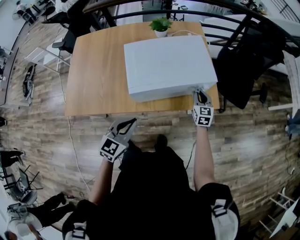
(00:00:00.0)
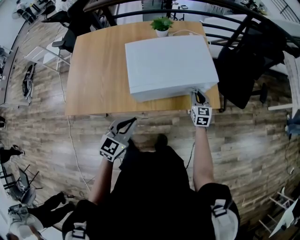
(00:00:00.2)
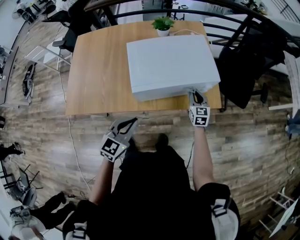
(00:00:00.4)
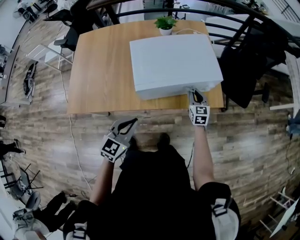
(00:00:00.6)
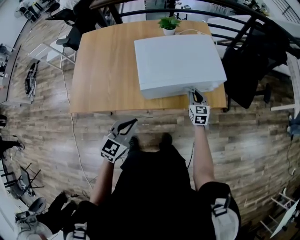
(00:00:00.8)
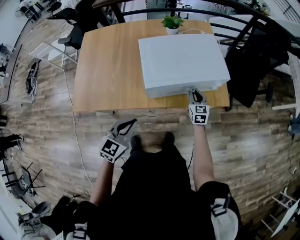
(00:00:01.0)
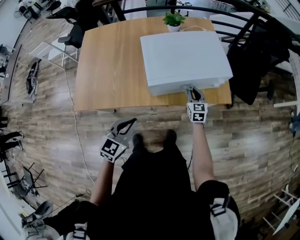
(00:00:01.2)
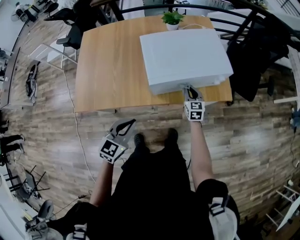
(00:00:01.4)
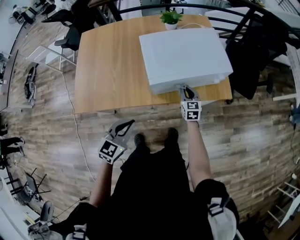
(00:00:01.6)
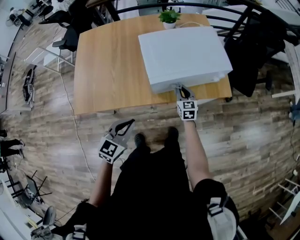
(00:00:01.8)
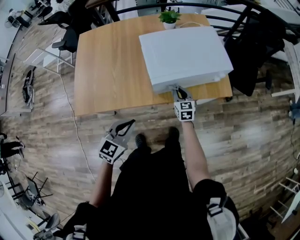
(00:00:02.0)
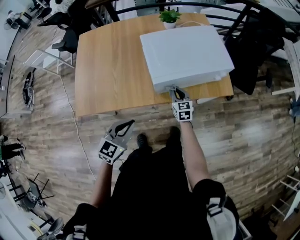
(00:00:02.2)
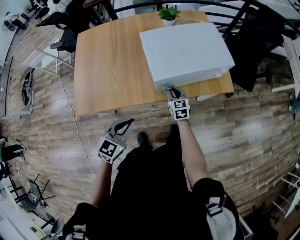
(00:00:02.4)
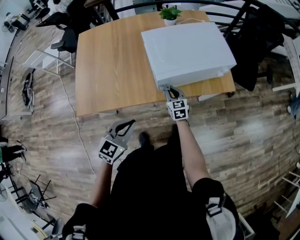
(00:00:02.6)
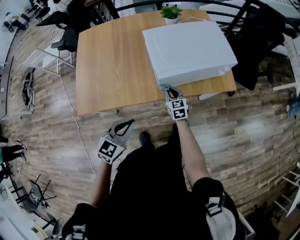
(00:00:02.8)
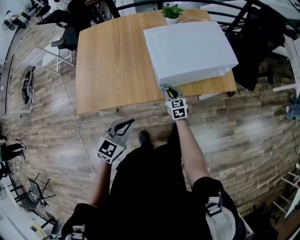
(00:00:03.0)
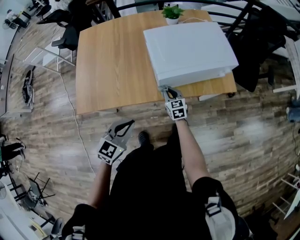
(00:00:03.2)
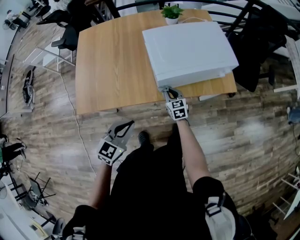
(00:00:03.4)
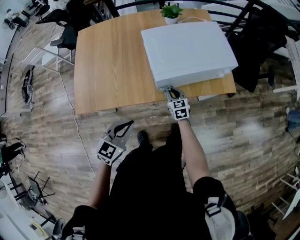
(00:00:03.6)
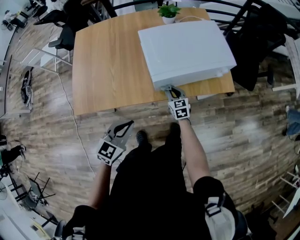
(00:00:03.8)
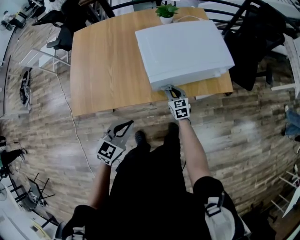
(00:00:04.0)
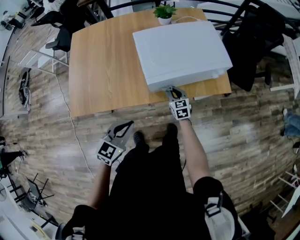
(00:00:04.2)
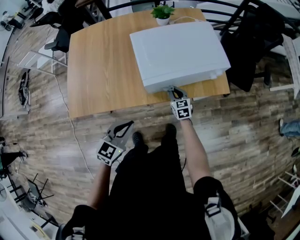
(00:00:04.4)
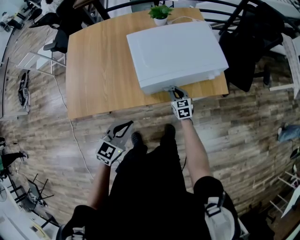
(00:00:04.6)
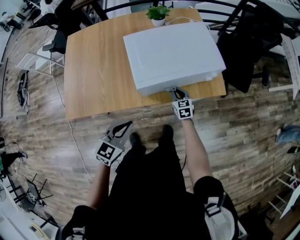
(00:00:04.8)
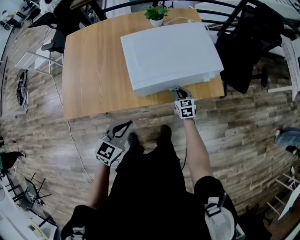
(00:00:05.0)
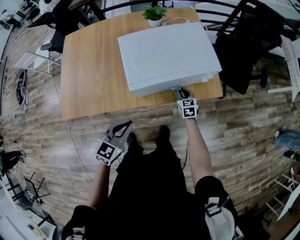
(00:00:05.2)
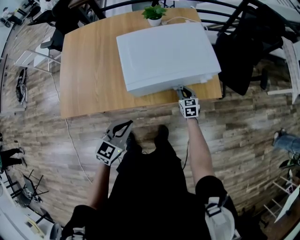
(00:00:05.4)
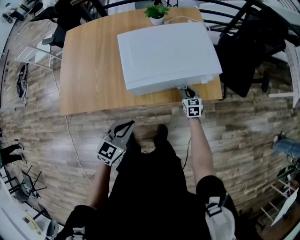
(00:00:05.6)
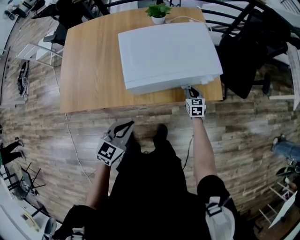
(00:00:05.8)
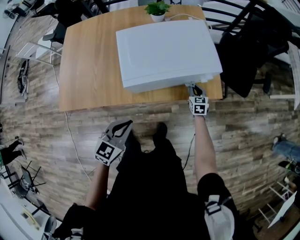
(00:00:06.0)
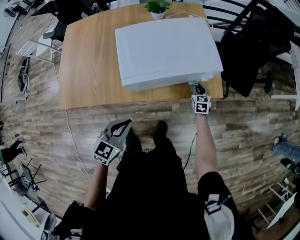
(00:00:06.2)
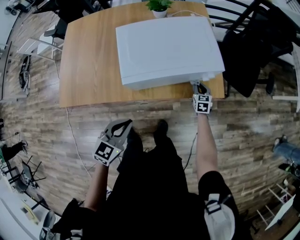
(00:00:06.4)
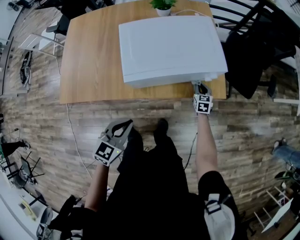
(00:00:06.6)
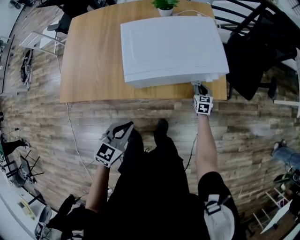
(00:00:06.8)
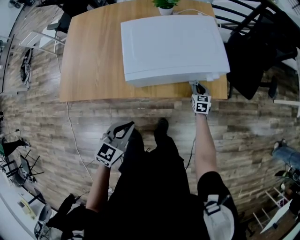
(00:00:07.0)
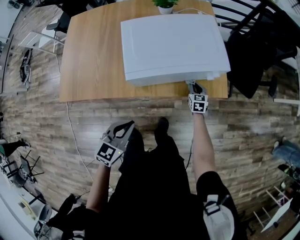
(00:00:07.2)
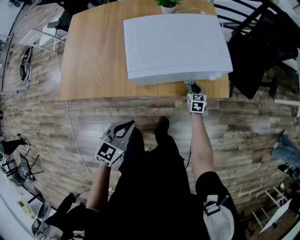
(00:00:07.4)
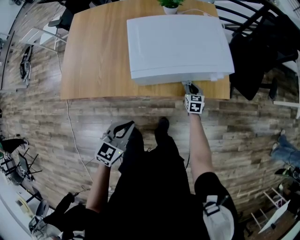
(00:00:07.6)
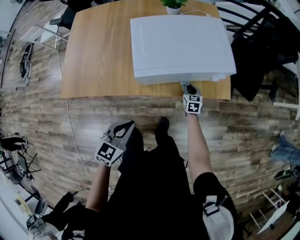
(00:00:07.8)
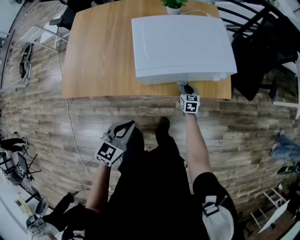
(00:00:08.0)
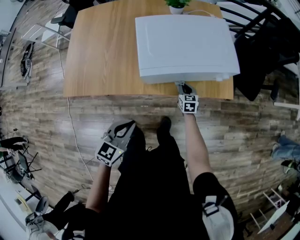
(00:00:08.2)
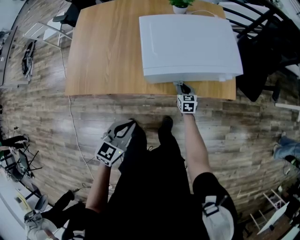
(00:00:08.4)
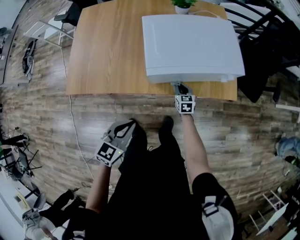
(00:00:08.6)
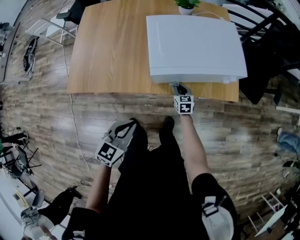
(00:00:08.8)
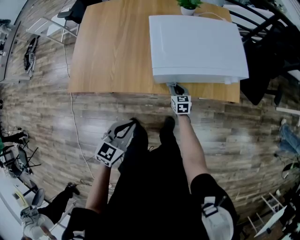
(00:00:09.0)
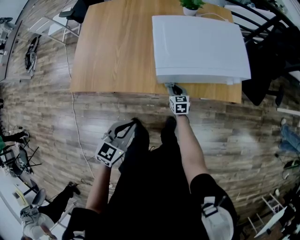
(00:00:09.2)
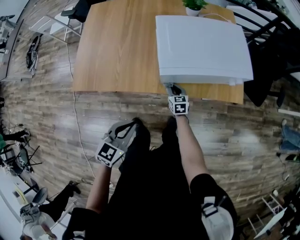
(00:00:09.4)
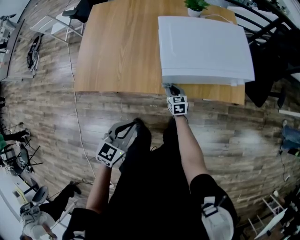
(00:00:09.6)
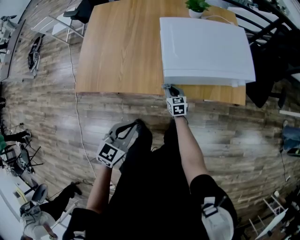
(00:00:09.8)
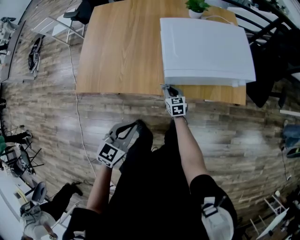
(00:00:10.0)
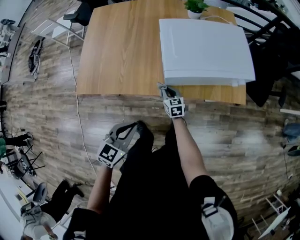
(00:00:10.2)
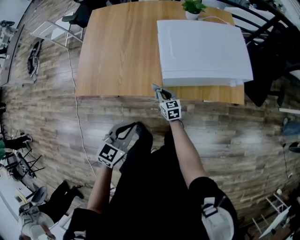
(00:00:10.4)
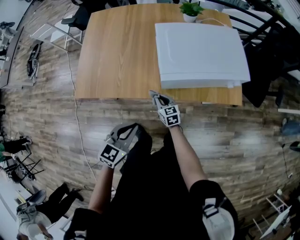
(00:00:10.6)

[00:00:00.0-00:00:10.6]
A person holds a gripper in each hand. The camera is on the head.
00:00:00.0 to 00:00:01.6: Both grippers move to the left and backward, approximately 15 cm.
00:00:01.6 to 00:00:03.0: The right gripper heads to the left and backward, covering approximately 15 cm.
00:00:03.0 to 00:00:04.6: The left gripper moves to the right, some 5 cm, while the right gripper shifts approximately 15 cm to the right and forward.
00:00:04.6 to 00:00:06.0: The right gripper heads to the right and forward, covering some 20 cm; the left gripper goes some 10 cm to the right.
00:00:06.0 to 00:00:07.6: The right gripper is displaced to the left by roughly 5 cm.
00:00:07.6 to 00:00:09.0: The right gripper travels to the left by approximately 15 cm. Meanwhile the left gripper shifts approximately 5 cm to the left.
00:00:09.0 to 00:00:10.6: The right gripper goes about 15 cm to the left and backward.

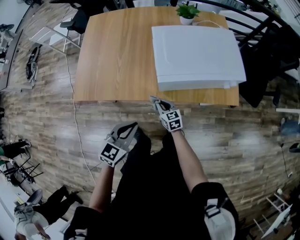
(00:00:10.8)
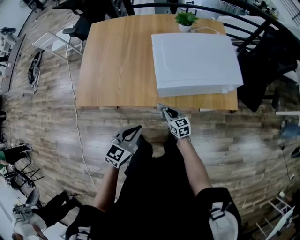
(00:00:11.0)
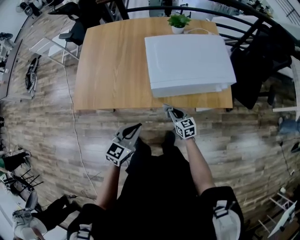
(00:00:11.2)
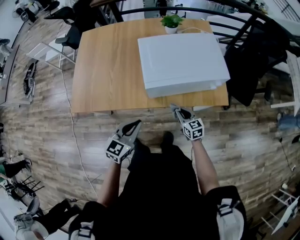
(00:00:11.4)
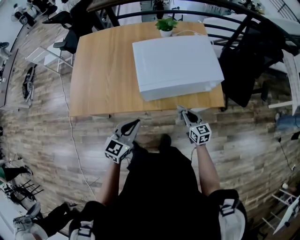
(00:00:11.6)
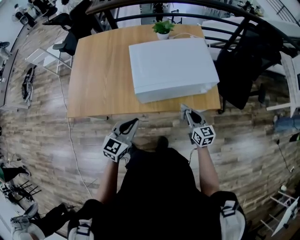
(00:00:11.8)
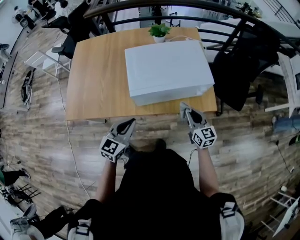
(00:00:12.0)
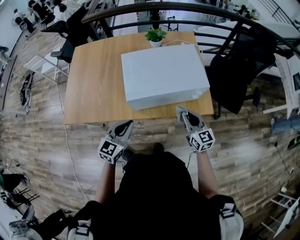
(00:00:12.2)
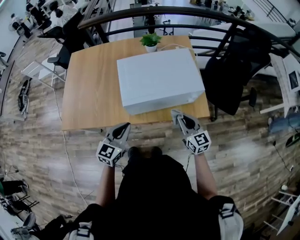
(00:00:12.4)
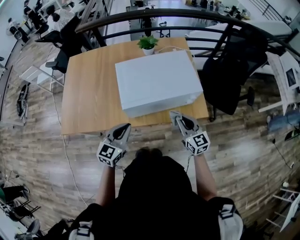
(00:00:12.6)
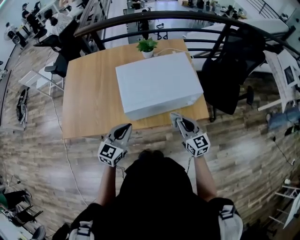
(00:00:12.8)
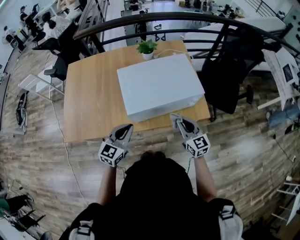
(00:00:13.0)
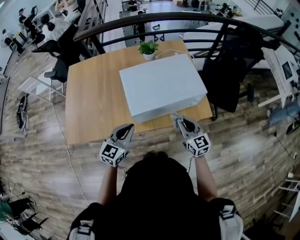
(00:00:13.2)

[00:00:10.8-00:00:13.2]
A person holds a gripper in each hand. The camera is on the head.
00:00:10.8 to 00:00:12.0: The right gripper travels to the right and upward by some 35 cm, and changes its angle by approximately 20 degrees; the left gripper moves to the right and forward, about 10 cm.
00:00:12.0 to 00:00:13.2: The left gripper moves forward, roughly 5 cm. The right gripper shifts by roughly 5 cm.

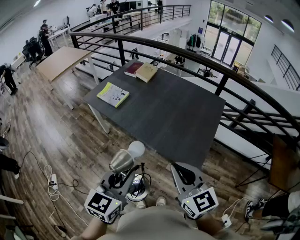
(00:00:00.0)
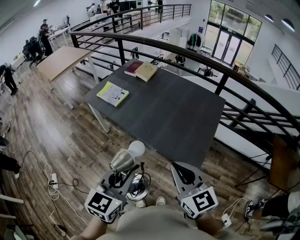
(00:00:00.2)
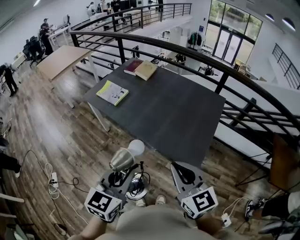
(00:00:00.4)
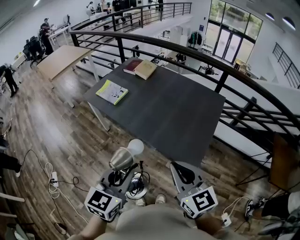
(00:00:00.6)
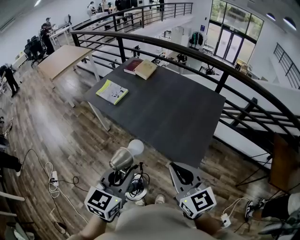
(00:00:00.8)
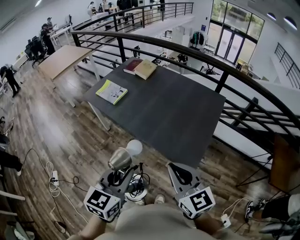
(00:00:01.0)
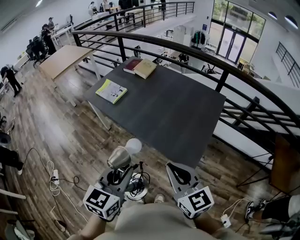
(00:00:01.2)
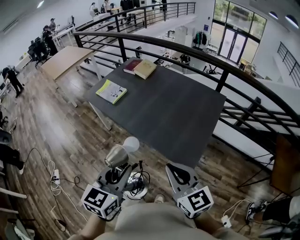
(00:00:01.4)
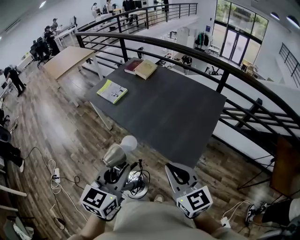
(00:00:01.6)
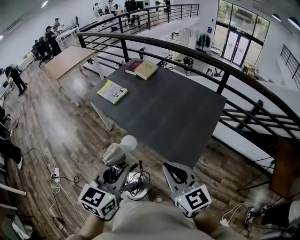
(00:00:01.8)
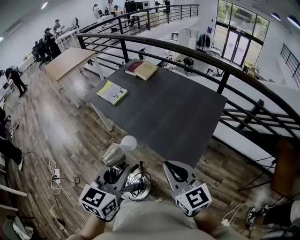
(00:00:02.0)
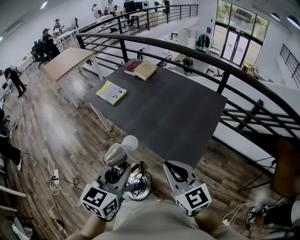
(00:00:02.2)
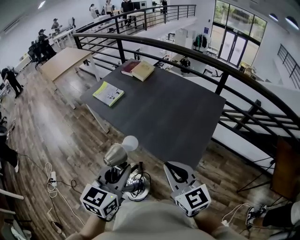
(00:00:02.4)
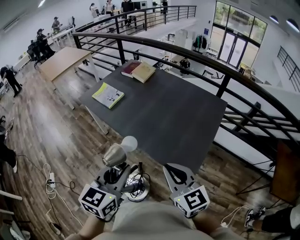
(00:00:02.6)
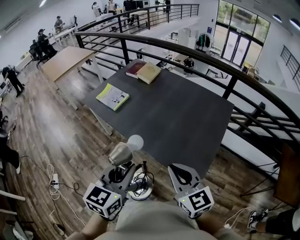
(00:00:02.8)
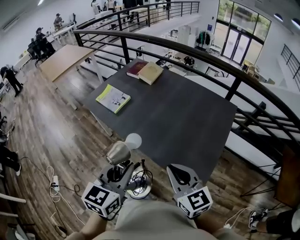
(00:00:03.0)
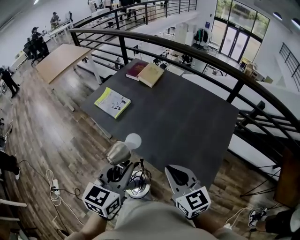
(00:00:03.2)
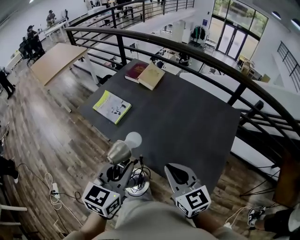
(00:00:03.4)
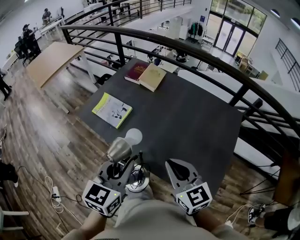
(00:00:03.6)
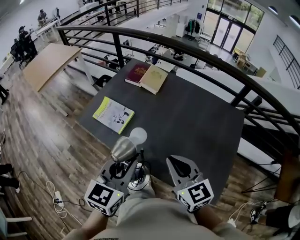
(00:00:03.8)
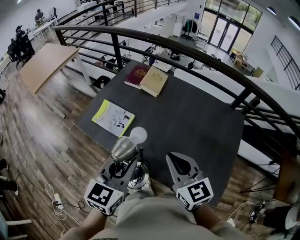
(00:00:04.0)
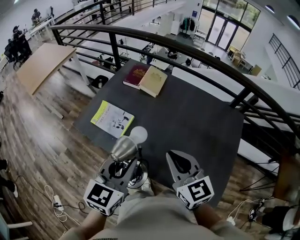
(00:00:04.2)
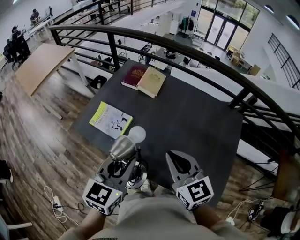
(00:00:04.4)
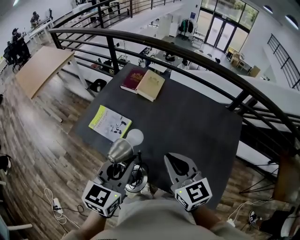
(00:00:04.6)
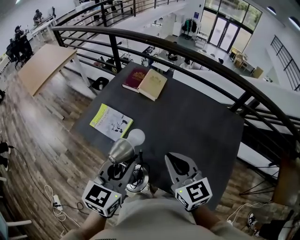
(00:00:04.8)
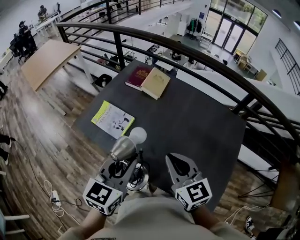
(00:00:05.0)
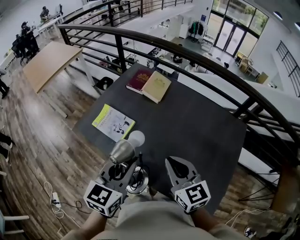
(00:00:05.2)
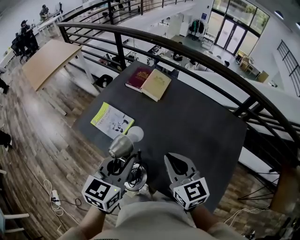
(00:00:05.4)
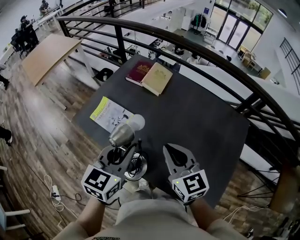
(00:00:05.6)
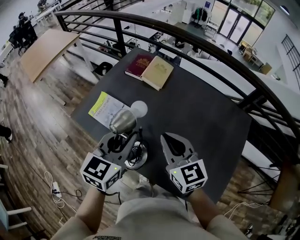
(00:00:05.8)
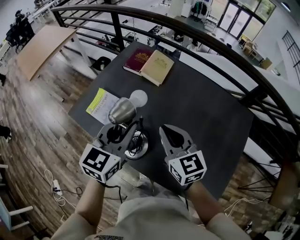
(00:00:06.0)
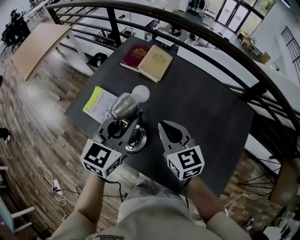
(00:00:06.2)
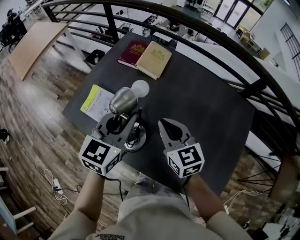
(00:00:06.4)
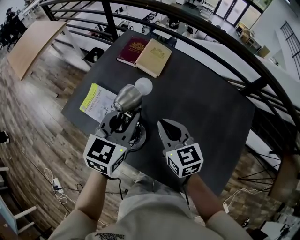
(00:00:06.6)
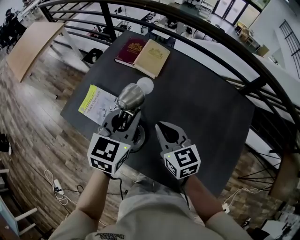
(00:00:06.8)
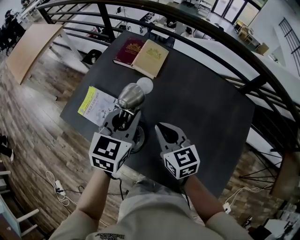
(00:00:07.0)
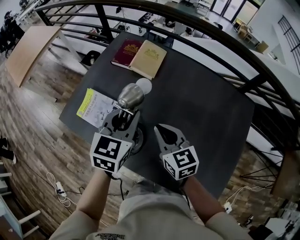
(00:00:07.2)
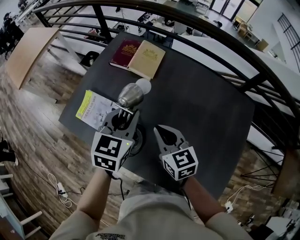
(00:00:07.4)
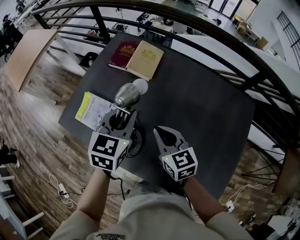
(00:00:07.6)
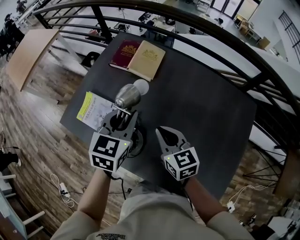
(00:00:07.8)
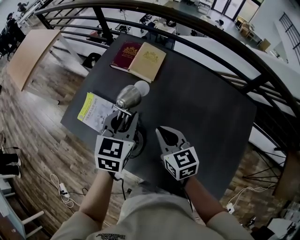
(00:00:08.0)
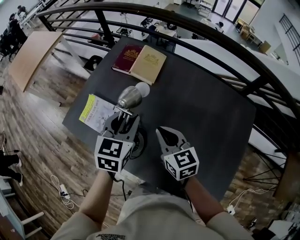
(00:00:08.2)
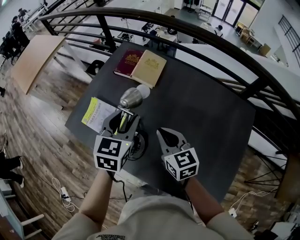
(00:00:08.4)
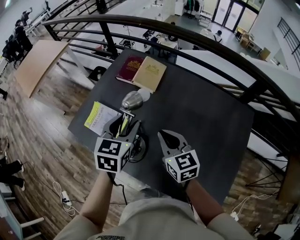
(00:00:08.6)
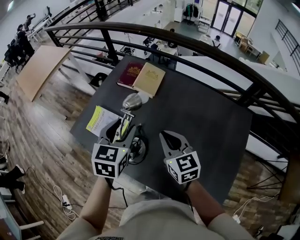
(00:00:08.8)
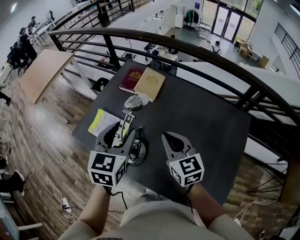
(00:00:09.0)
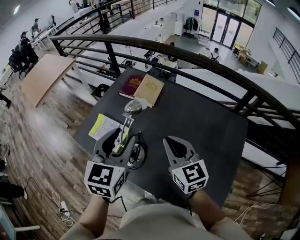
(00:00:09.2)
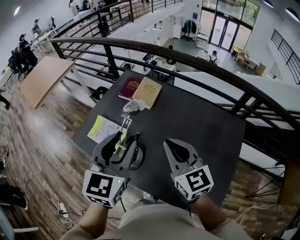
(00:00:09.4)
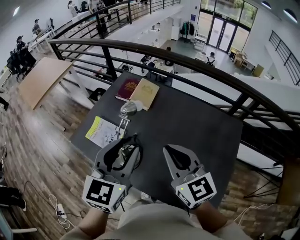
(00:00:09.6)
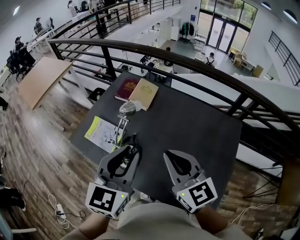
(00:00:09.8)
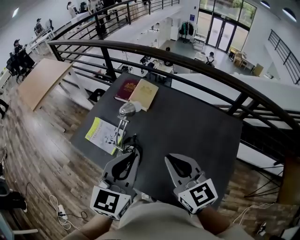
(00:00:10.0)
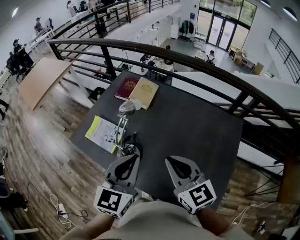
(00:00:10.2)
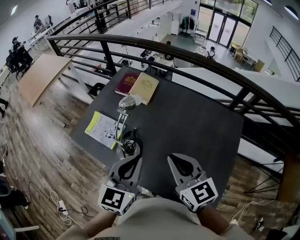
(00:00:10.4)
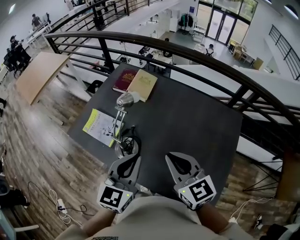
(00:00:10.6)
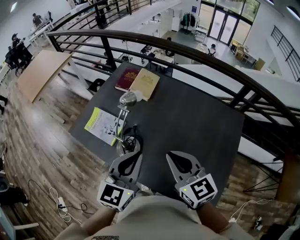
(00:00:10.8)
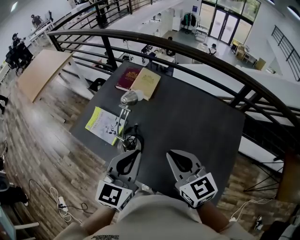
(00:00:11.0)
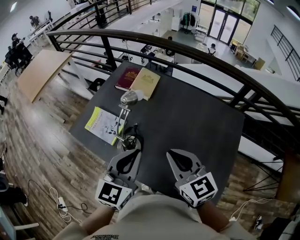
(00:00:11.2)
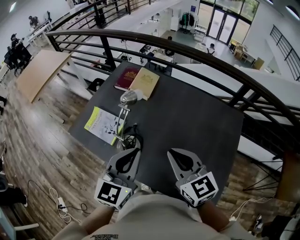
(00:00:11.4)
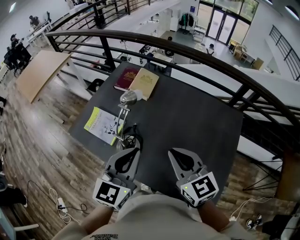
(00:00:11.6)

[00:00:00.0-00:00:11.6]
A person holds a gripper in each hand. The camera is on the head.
00:00:00.0 to 00:00:01.4: The two grippers go some 5 cm to the right.
00:00:01.4 to 00:00:02.8: Both grippers move forward, approximately 10 cm.
00:00:02.8 to 00:00:04.4: The grippers both shift forward and to the left by about 35 cm.
00:00:04.4 to 00:00:05.8: Both grippers move forward, roughly 10 cm.
00:00:05.8 to 00:00:07.2: The right gripper is displaced downward and forward by about 15 cm. Meanwhile the left gripper shifts roughly 15 cm forward and downward.
00:00:07.2 to 00:00:08.8: The right gripper shifts approximately 5 cm upward. Meanwhile the left gripper opens its fingers.
00:00:08.8 to 00:00:10.2: The right gripper goes some 15 cm backward and upward. The left gripper shifts some 15 cm backward, upward and to the right, and closes its fingers.
00:00:10.2 to 00:00:11.6: The grippers stay close to where they were, moving slightly.
